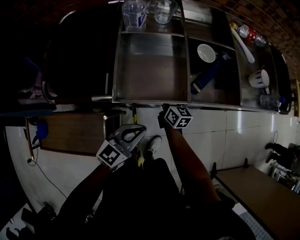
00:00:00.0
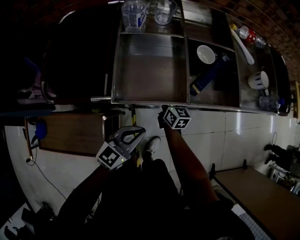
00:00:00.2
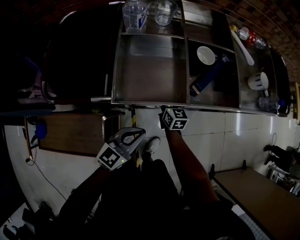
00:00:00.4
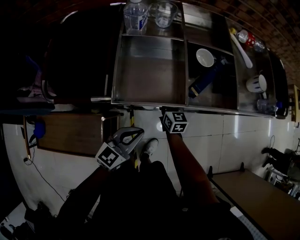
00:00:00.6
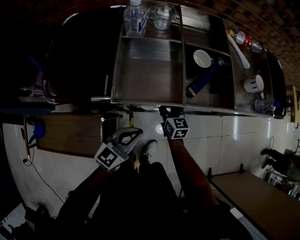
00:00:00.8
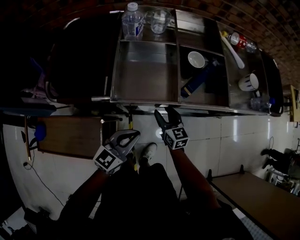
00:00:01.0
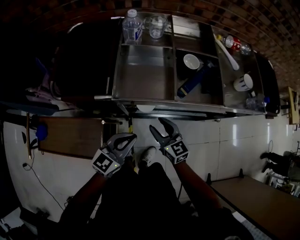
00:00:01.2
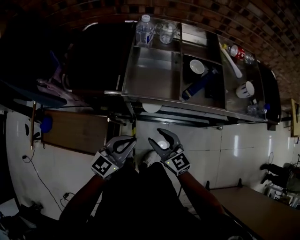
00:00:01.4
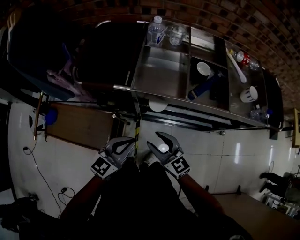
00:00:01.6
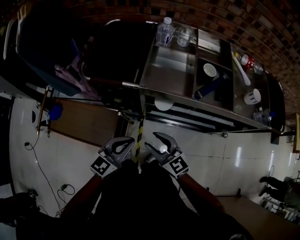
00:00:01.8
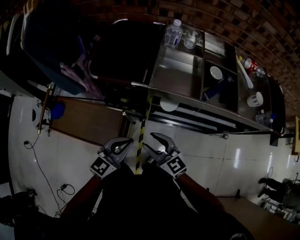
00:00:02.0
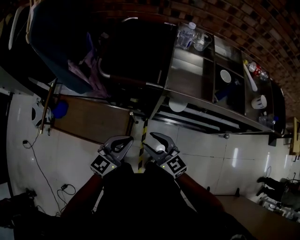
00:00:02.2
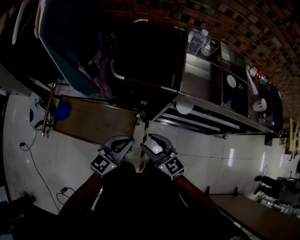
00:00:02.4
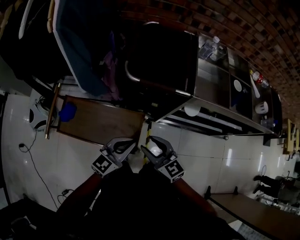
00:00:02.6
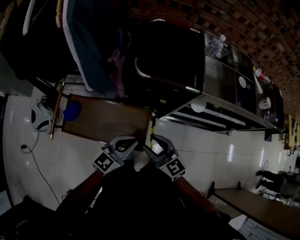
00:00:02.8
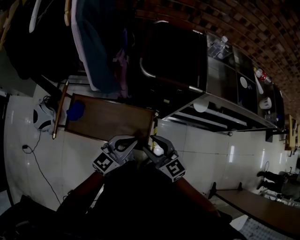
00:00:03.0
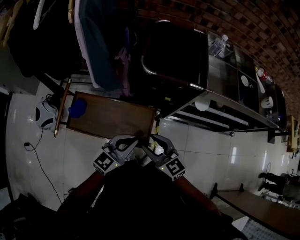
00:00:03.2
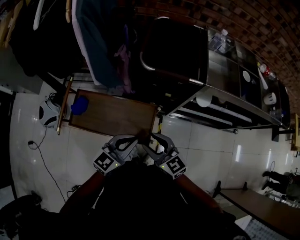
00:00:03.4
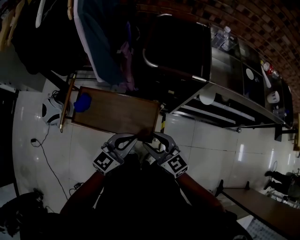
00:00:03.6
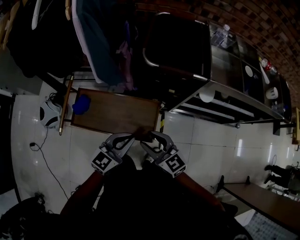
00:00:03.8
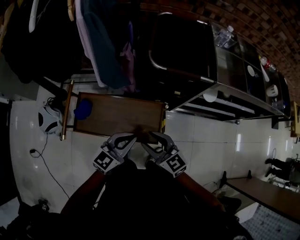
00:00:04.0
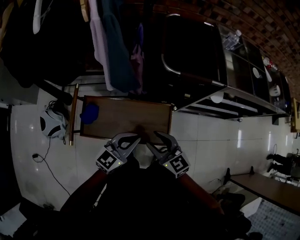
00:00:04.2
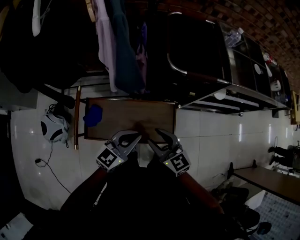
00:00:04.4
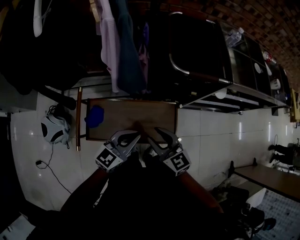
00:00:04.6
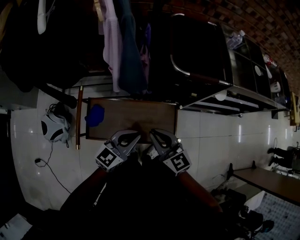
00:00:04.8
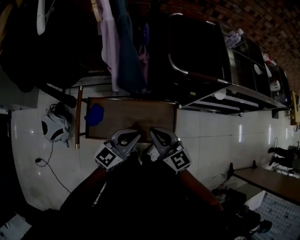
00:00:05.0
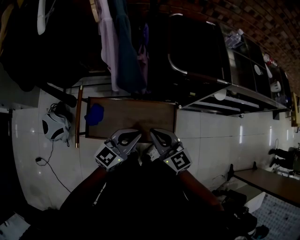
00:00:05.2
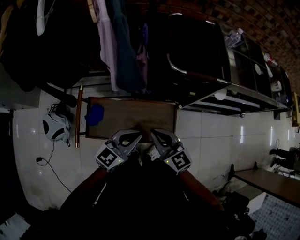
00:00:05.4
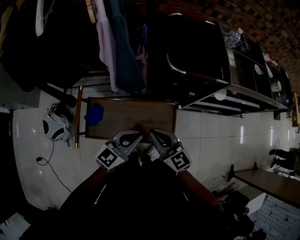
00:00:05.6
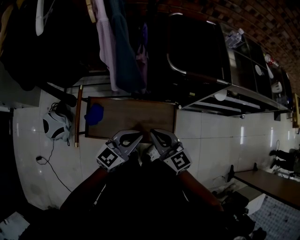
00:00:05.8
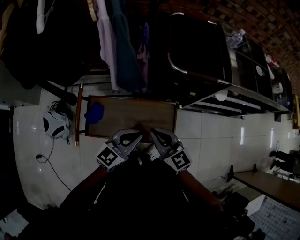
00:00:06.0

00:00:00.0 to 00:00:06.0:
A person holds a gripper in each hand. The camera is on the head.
00:00:00.0 to 00:00:01.6: The left gripper moves backward and upward, roughly 10 cm. Meanwhile the right gripper moves backward and upward, about 30 cm, changes its angle by some 40 degrees, and opens.
00:00:01.6 to 00:00:03.0: The two grippers go roughly 30 cm to the left.
00:00:03.0 to 00:00:04.4: Both grippers travel together to the left, about 15 cm.
00:00:04.4 to 00:00:06.0: The right gripper closes up.

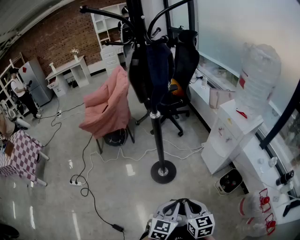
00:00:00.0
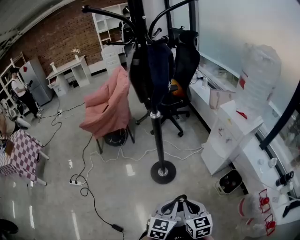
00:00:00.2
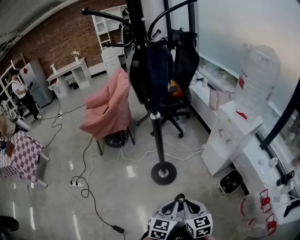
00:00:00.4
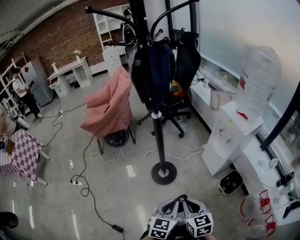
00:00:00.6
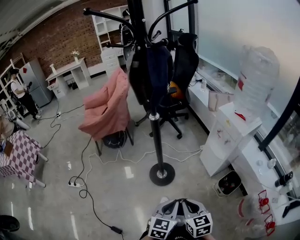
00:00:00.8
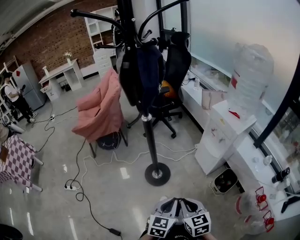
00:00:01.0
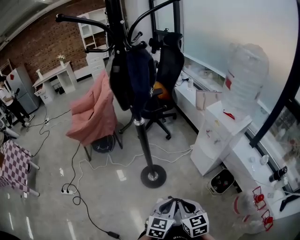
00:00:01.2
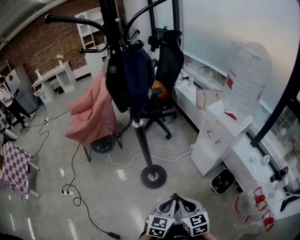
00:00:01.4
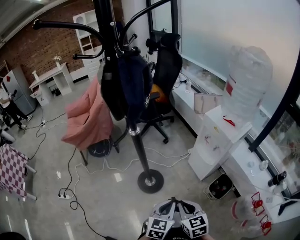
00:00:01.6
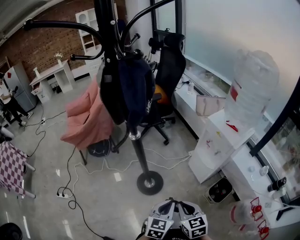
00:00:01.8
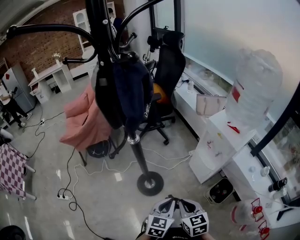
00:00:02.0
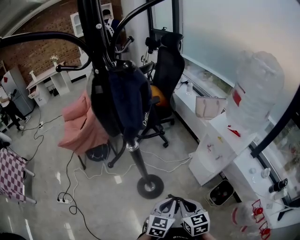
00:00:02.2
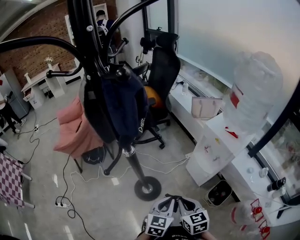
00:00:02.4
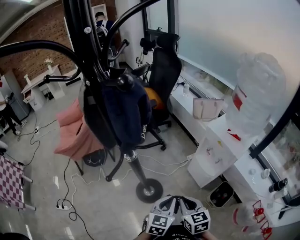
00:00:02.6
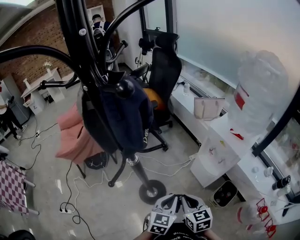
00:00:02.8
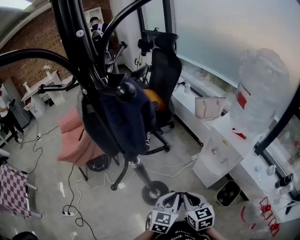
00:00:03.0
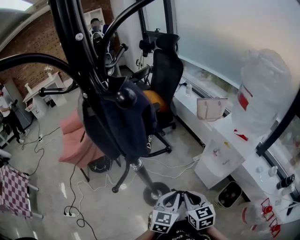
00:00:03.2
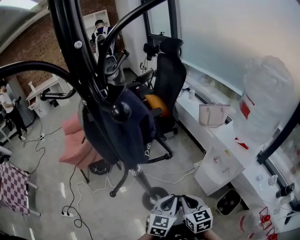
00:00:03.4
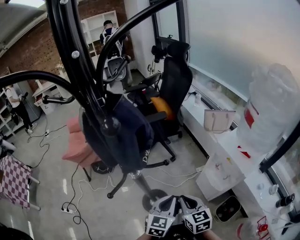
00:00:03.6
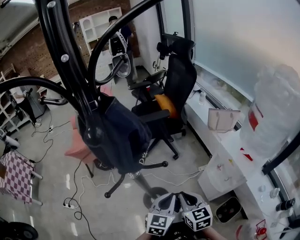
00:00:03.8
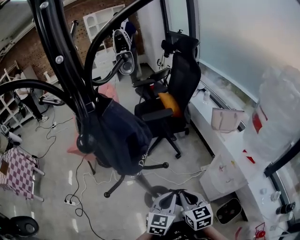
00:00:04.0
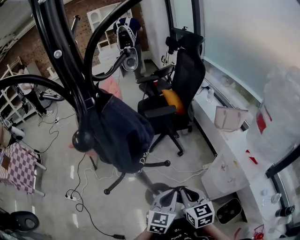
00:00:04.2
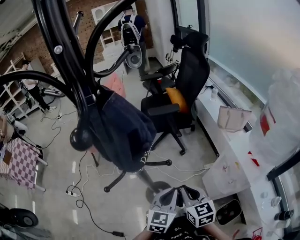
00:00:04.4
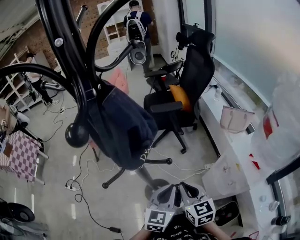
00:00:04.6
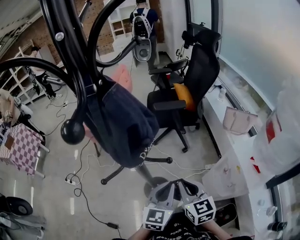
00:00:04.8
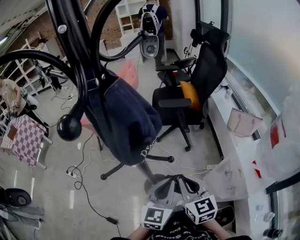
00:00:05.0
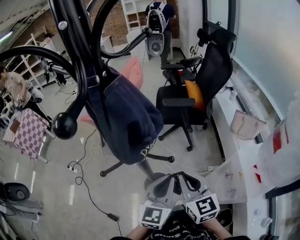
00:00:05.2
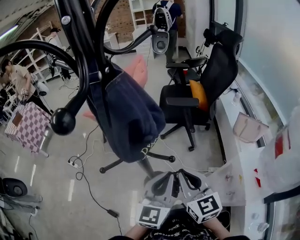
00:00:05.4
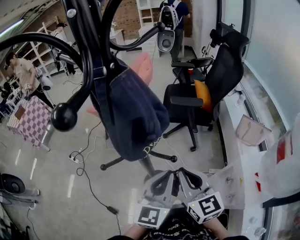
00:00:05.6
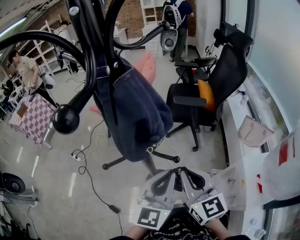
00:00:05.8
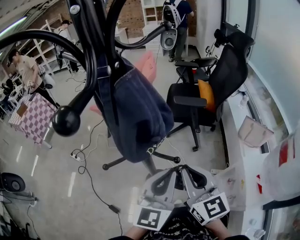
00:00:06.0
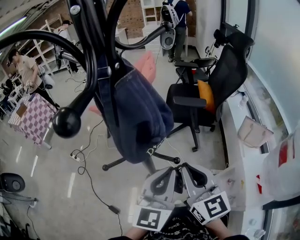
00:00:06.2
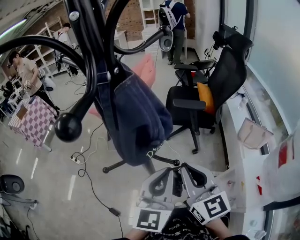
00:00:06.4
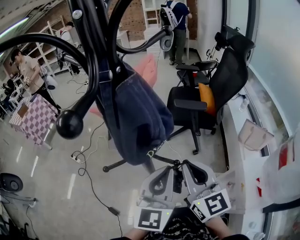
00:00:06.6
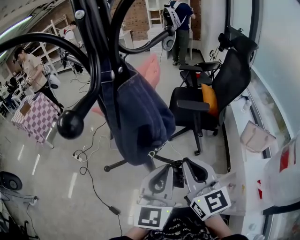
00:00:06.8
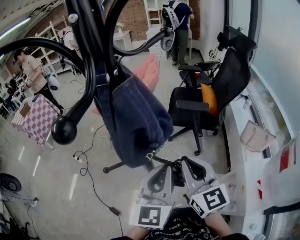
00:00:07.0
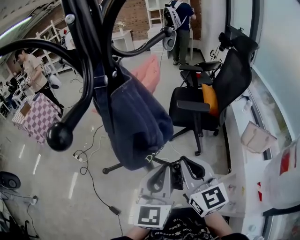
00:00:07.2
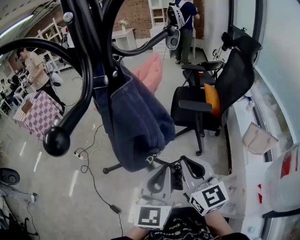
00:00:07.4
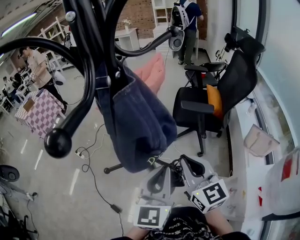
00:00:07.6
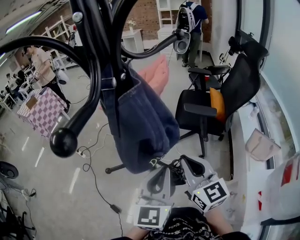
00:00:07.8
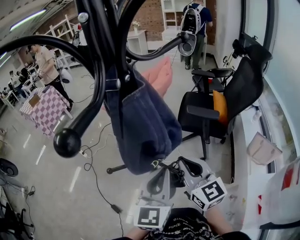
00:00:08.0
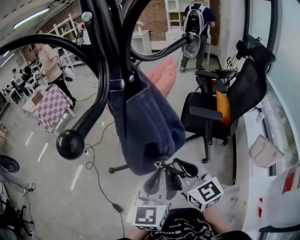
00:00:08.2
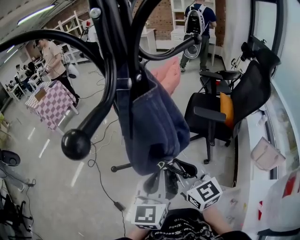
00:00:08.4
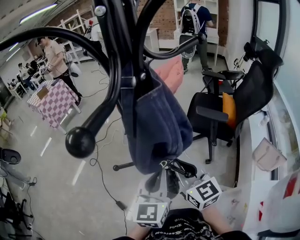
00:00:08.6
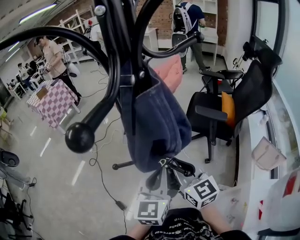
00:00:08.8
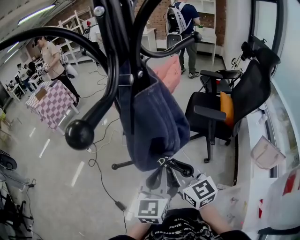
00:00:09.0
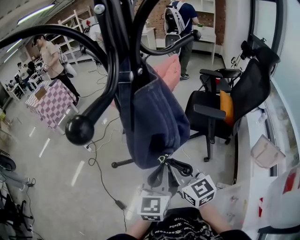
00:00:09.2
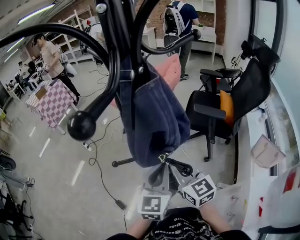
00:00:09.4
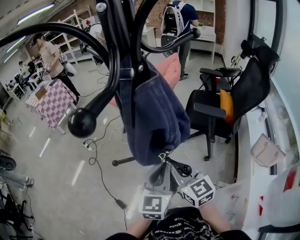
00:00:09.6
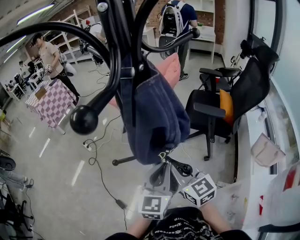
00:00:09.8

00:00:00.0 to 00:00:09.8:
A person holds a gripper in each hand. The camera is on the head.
00:00:00.0 to 00:00:01.4: Both grippers travel together forward, about 5 cm.
00:00:01.4 to 00:00:02.8: Both grippers move forward, about 20 cm.
00:00:02.8 to 00:00:04.2: The grippers both shift forward by some 10 cm.
00:00:04.2 to 00:00:05.6: Both grippers travel together upward, approximately 10 cm. The left gripper changes its angle by roughly 30 degrees. Meanwhile the right gripper rotates some 30 degrees.
00:00:05.6 to 00:00:07.0: The right gripper goes approximately 5 cm upward; the left gripper shifts by approximately 5 cm.
00:00:07.0 to 00:00:08.4: The right gripper goes roughly 5 cm to the left. The left gripper ends up approximately 5 cm from where it was.
00:00:08.4 to 00:00:09.8: The grippers move only a little.

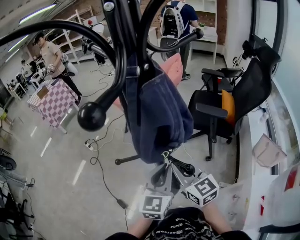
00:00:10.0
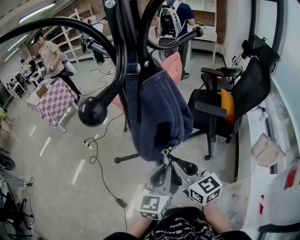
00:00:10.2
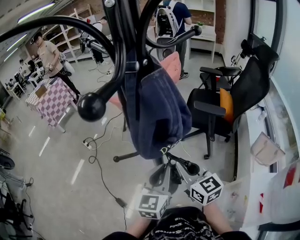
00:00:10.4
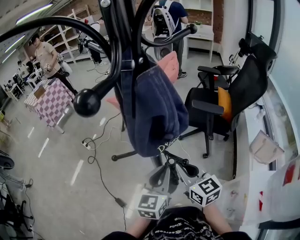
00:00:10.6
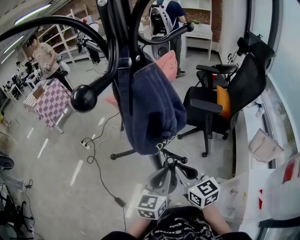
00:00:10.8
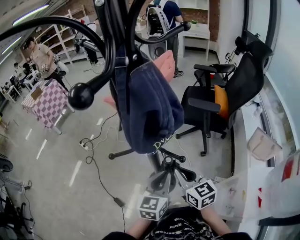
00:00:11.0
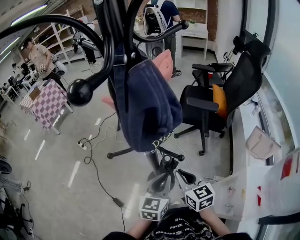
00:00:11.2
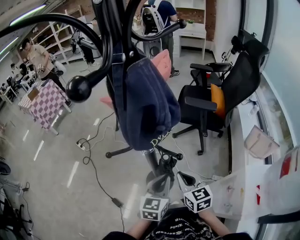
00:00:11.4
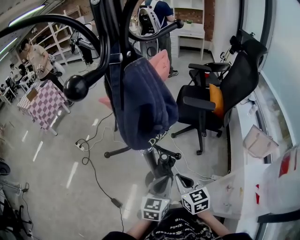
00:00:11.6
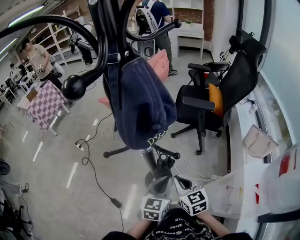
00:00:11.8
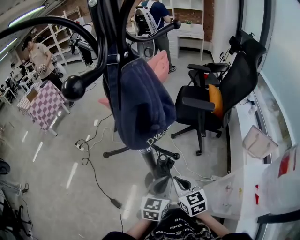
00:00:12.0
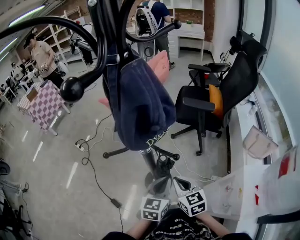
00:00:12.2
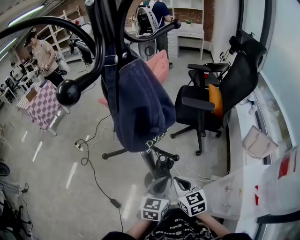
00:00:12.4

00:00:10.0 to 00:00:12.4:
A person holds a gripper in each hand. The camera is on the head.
00:00:10.0 to 00:00:11.2: The left gripper shifts some 10 cm downward, while the right gripper heads downward and backward, covering about 10 cm.
00:00:11.2 to 00:00:12.4: The grippers move only a little.

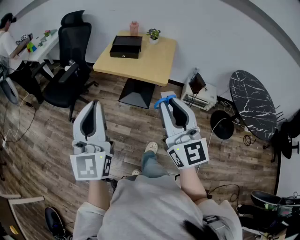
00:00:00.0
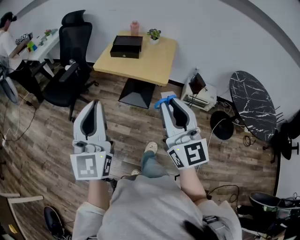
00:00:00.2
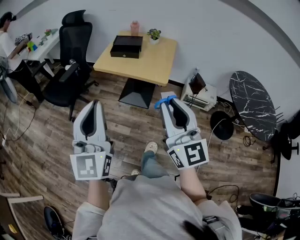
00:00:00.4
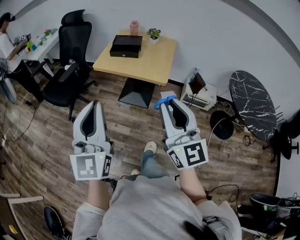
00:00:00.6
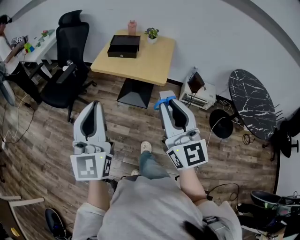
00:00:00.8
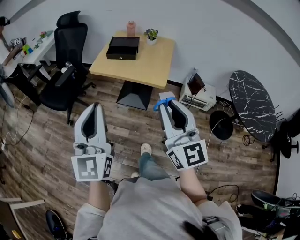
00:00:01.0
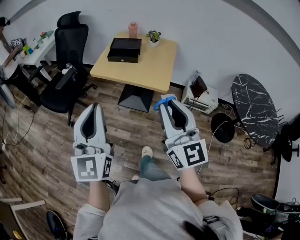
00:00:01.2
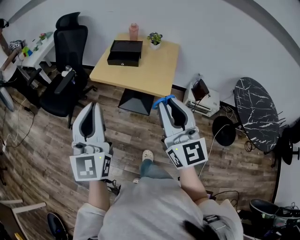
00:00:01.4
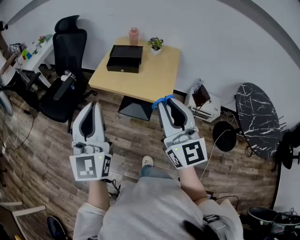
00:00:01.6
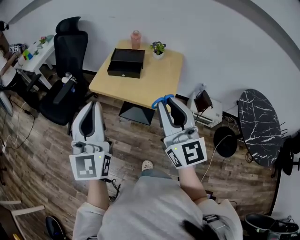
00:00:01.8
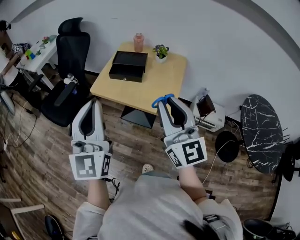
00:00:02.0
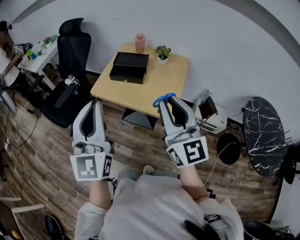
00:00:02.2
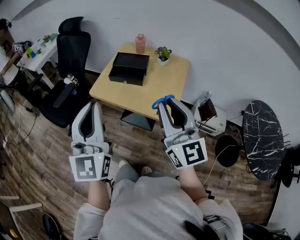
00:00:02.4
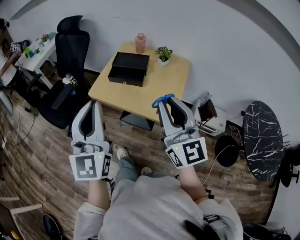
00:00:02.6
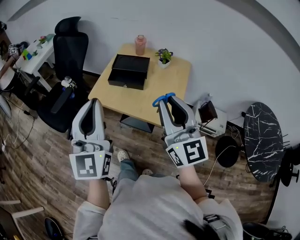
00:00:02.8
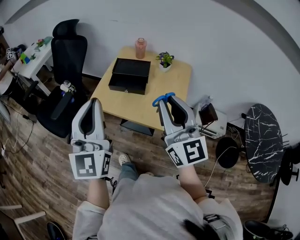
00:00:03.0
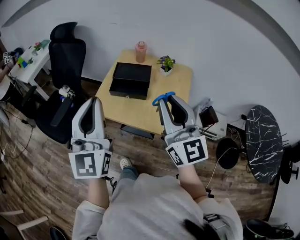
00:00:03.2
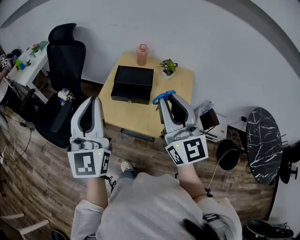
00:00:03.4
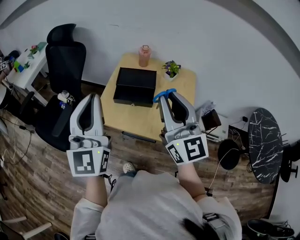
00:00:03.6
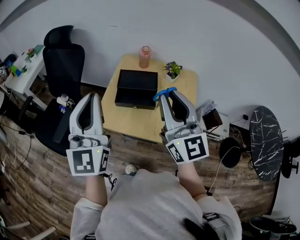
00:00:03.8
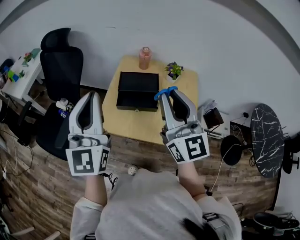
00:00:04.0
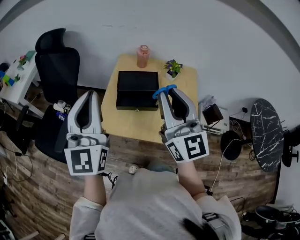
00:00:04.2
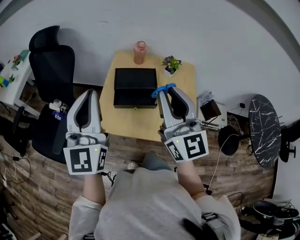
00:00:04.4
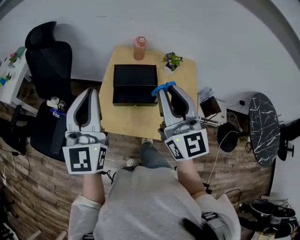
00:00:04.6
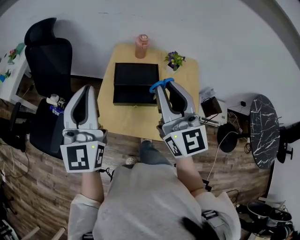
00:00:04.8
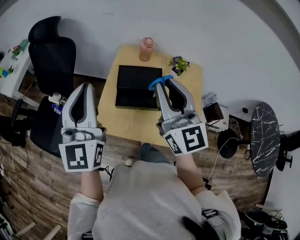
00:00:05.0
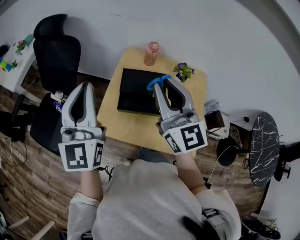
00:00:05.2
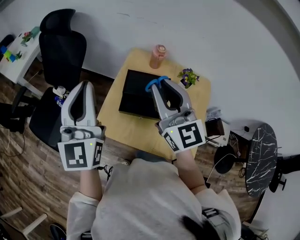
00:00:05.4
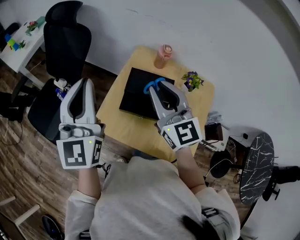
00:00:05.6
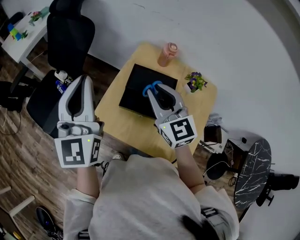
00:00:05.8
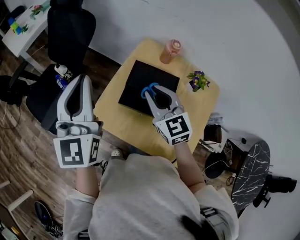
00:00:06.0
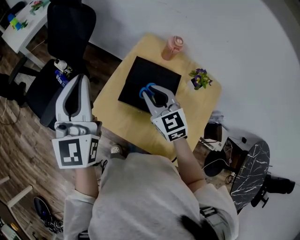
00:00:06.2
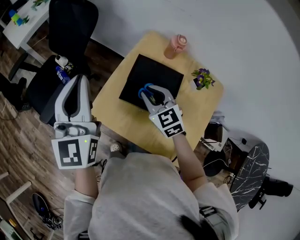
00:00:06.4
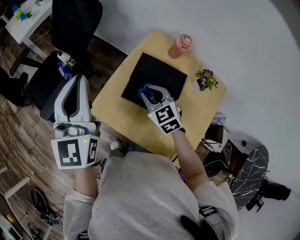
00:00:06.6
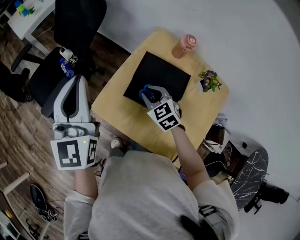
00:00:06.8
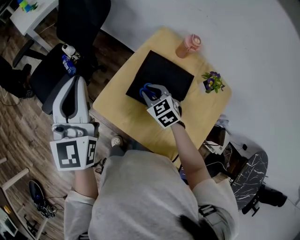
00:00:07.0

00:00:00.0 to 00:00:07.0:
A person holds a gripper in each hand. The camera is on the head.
00:00:00.0 to 00:00:01.4: The grippers both shift forward by approximately 10 cm.
00:00:01.4 to 00:00:02.8: The grippers both shift forward by roughly 20 cm.
00:00:02.8 to 00:00:04.2: Both grippers move forward and to the left, roughly 25 cm.
00:00:04.2 to 00:00:05.6: The left gripper heads forward, covering about 10 cm; the right gripper is displaced forward and downward by approximately 20 cm, and changes its angle by approximately 30 degrees.
00:00:05.6 to 00:00:07.0: The right gripper heads downward, covering about 30 cm, and points its fingers approximately 40 degrees further downward. Meanwhile the left gripper is displaced downward by some 5 cm.
